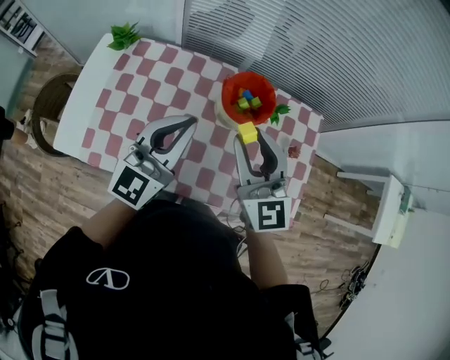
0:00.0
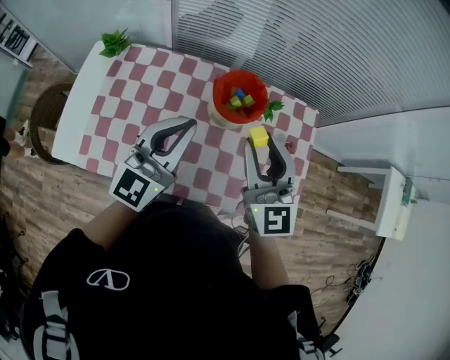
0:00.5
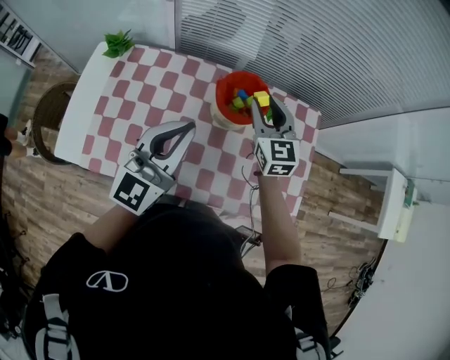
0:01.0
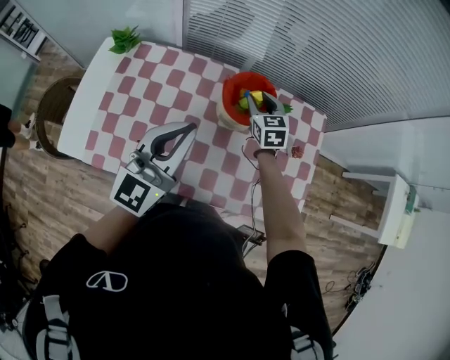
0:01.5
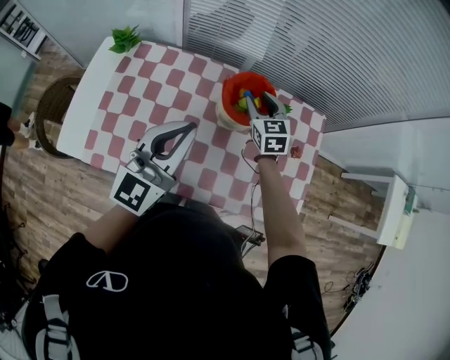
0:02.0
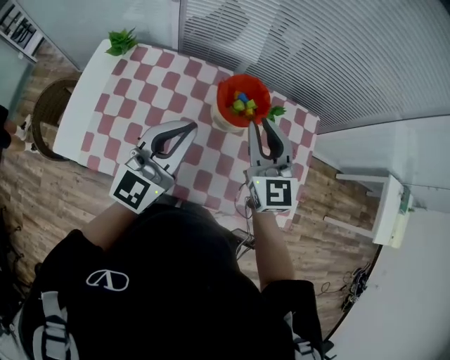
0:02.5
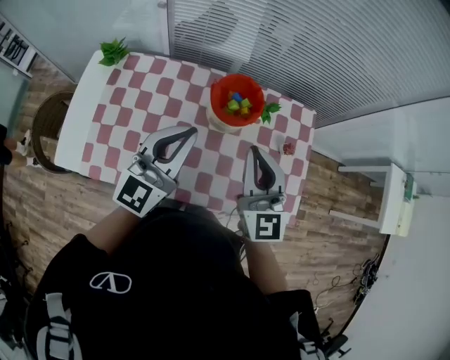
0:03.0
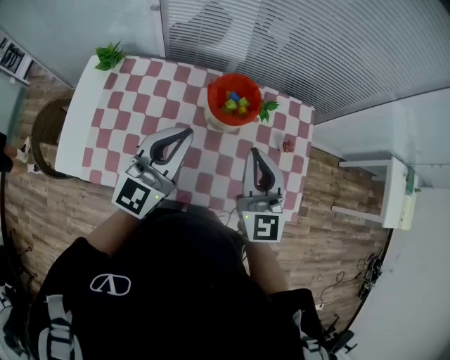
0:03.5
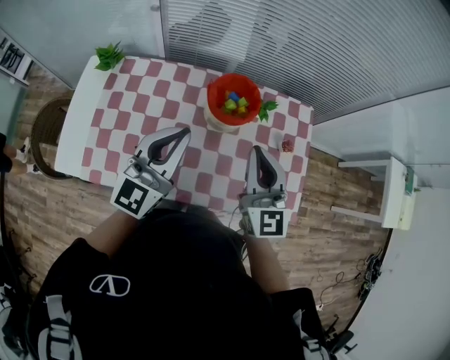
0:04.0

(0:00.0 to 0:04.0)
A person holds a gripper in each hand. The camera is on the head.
0:00.0 - 0:02.0: The right gripper is displaced downward and forward by roughly 25 cm, and swivels approximately 30 degrees.
0:02.0 - 0:04.0: The right gripper shifts roughly 25 cm backward and upward, changes its angle by some 30 degrees, and closes.

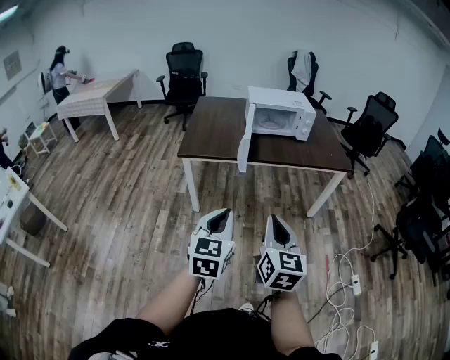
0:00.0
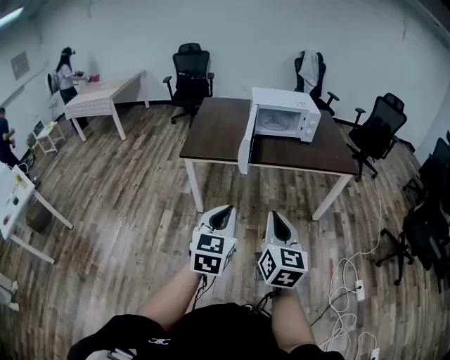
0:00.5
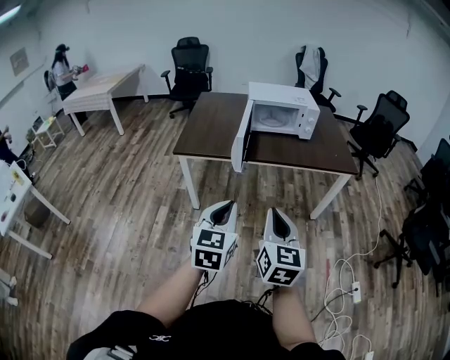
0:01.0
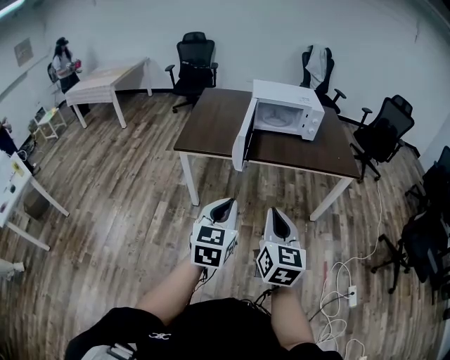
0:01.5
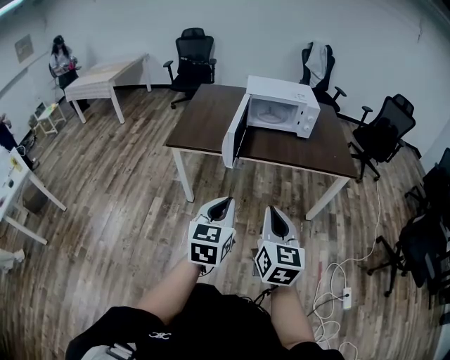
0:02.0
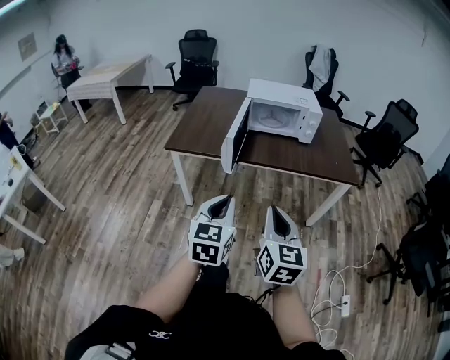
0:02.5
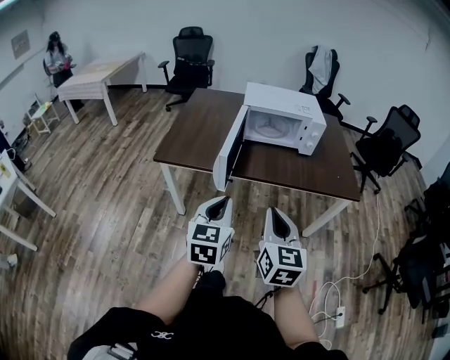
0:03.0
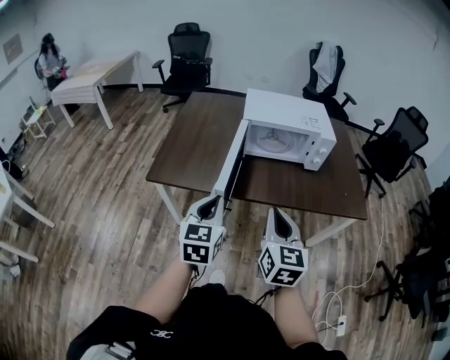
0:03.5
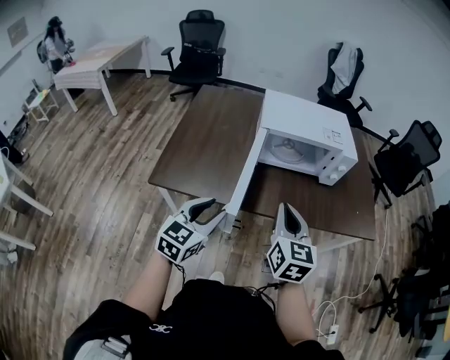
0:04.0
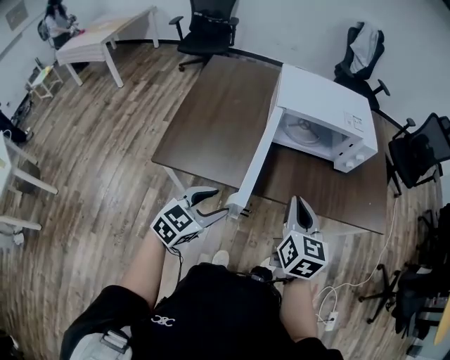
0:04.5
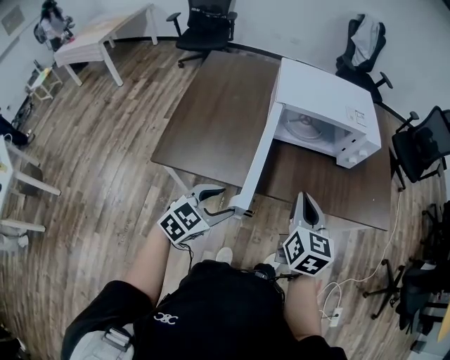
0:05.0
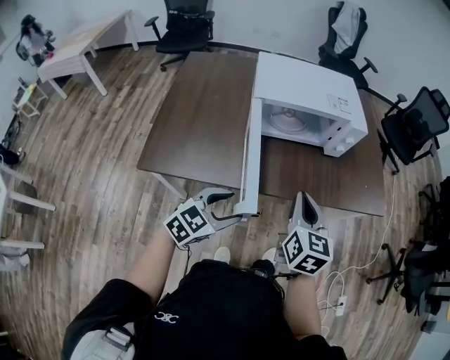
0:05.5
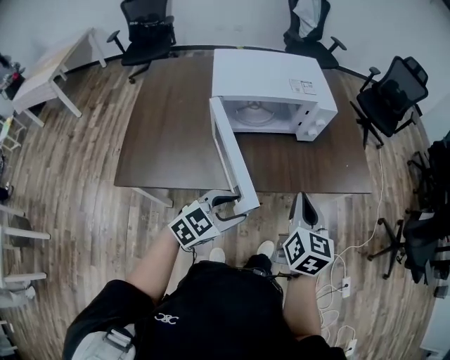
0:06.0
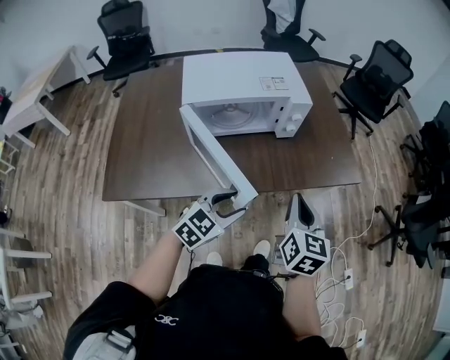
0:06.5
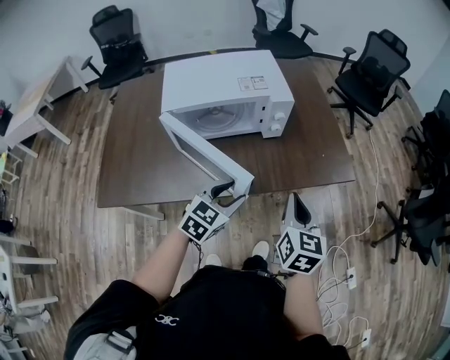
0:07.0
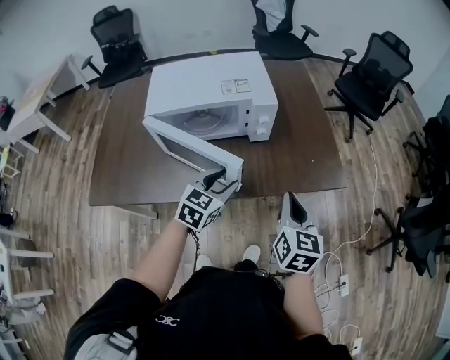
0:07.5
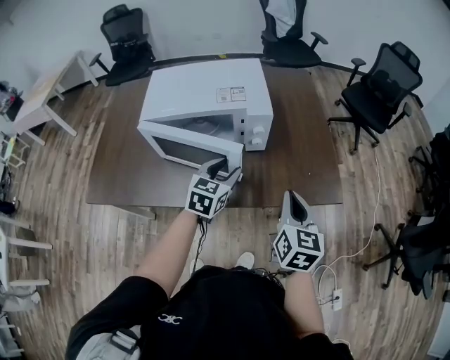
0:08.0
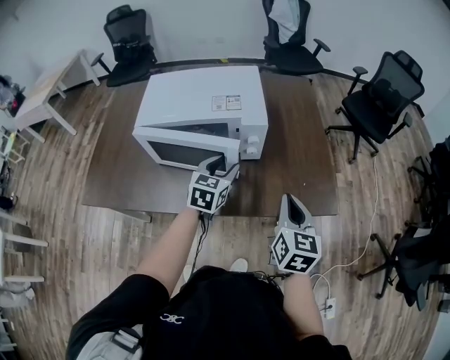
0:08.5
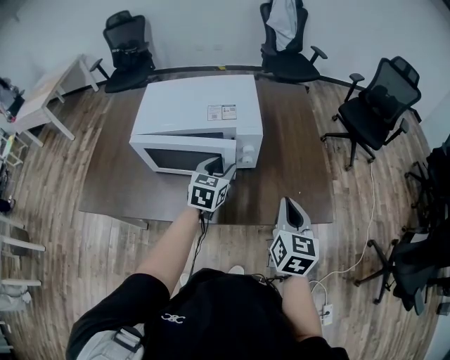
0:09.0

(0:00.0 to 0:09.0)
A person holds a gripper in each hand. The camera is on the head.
0:00.0 - 0:02.0: Both grippers move to the right and forward, roughly 15 cm.
0:02.0 - 0:04.5: Both grippers travel together forward, about 40 cm. The left gripper rotates roughly 30 degrees, and opens.
0:04.5 - 0:07.0: Both grippers move to the right and forward, roughly 30 cm. The right gripper rotates some 20 degrees.
0:07.0 - 0:09.0: The right gripper moves forward and to the right, roughly 15 cm. The left gripper travels forward by some 25 cm, and swivels some 30 degrees.

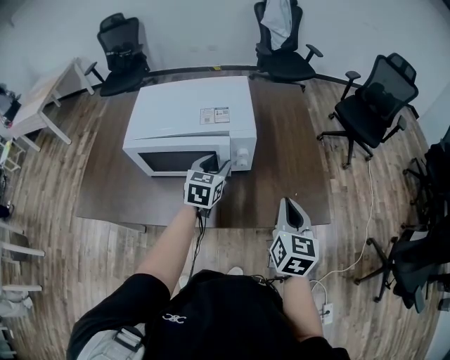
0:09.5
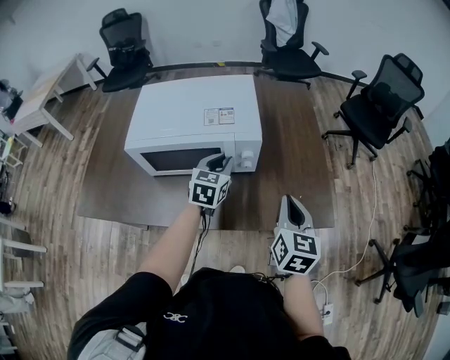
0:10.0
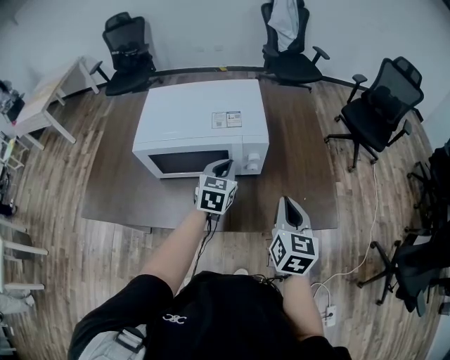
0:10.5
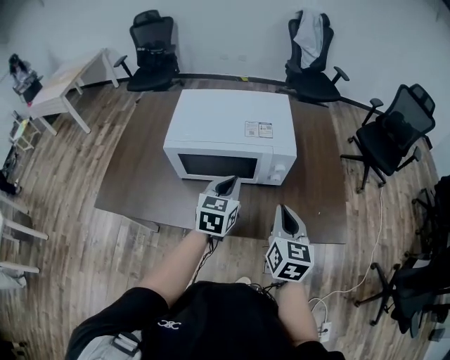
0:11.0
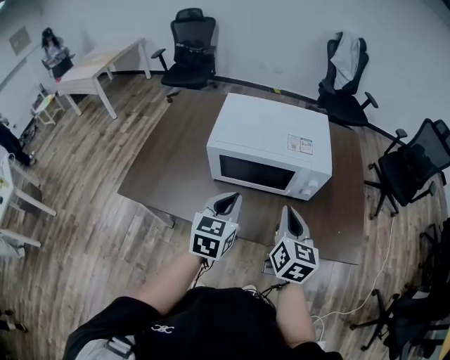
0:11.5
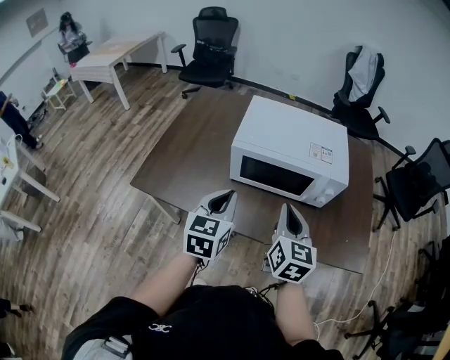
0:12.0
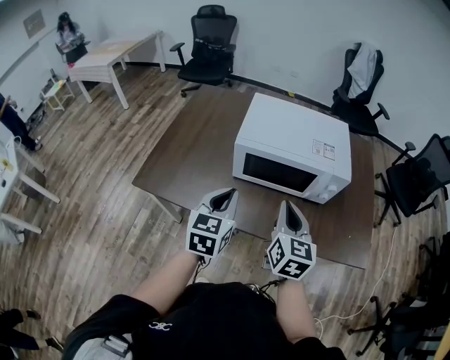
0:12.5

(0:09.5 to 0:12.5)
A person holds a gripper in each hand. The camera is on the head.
0:09.5 - 0:11.0: The left gripper travels to the left and backward by approximately 10 cm, and closes; the right gripper goes approximately 10 cm to the left.
0:11.0 - 0:12.5: The left gripper heads to the left and backward, covering roughly 20 cm, while the right gripper is displaced to the left by about 20 cm.

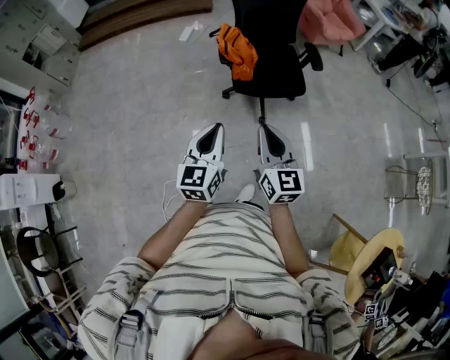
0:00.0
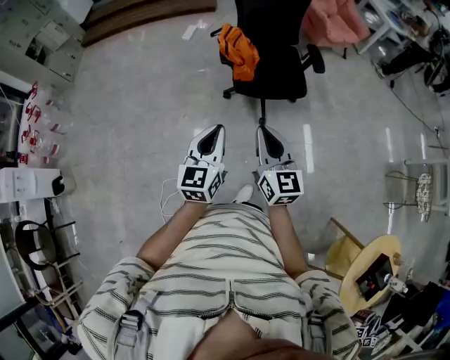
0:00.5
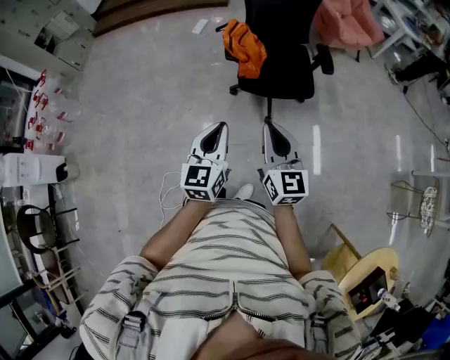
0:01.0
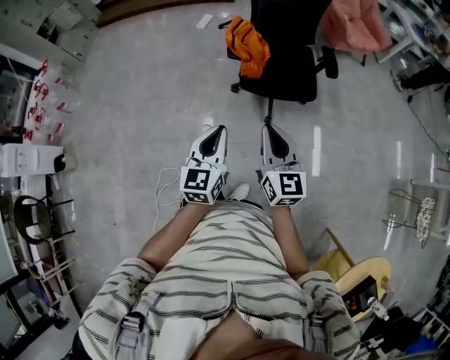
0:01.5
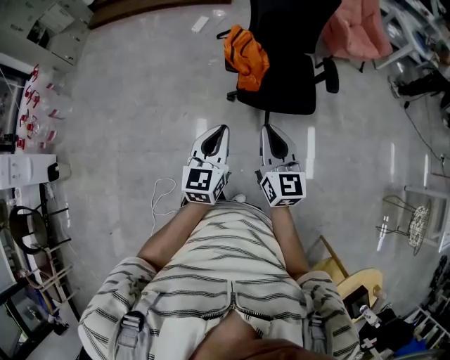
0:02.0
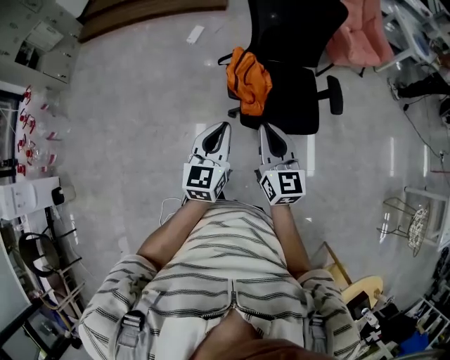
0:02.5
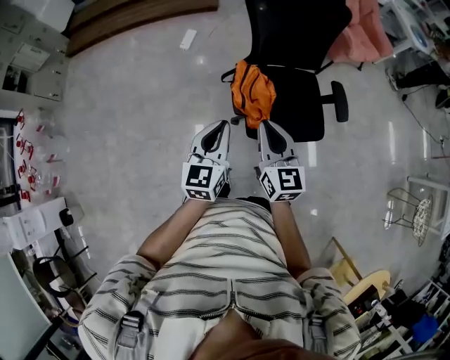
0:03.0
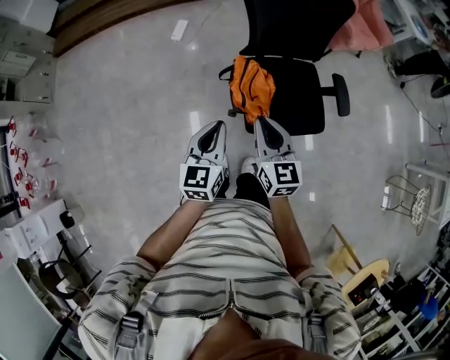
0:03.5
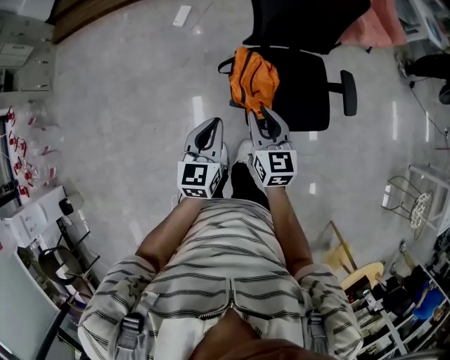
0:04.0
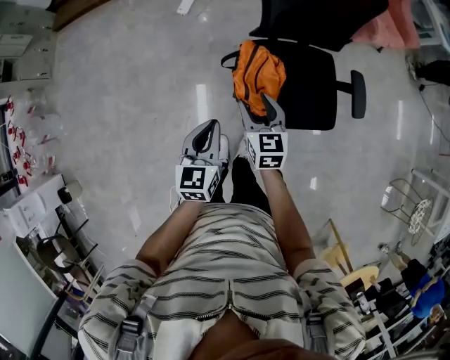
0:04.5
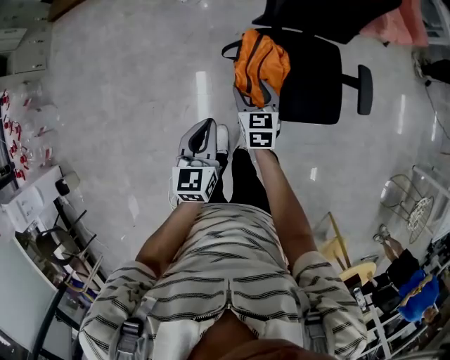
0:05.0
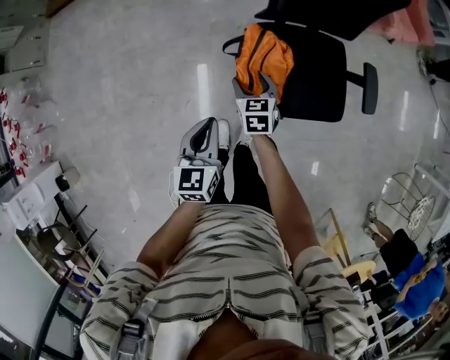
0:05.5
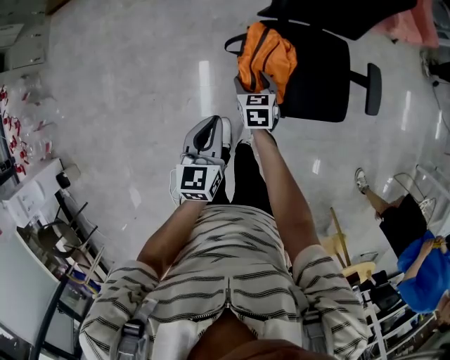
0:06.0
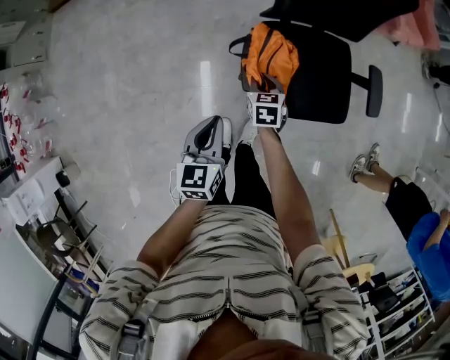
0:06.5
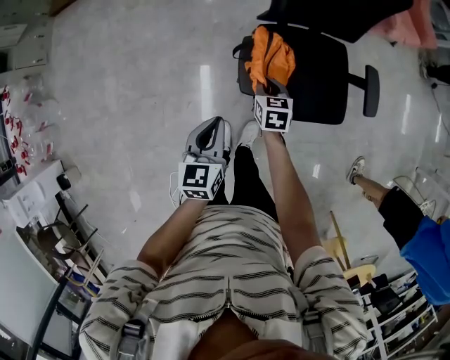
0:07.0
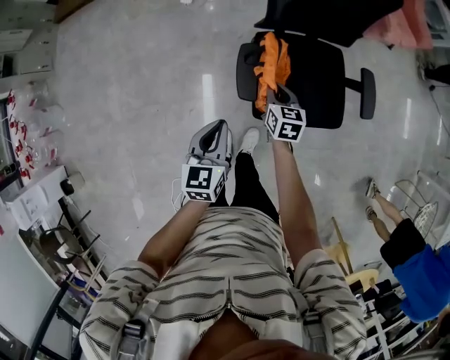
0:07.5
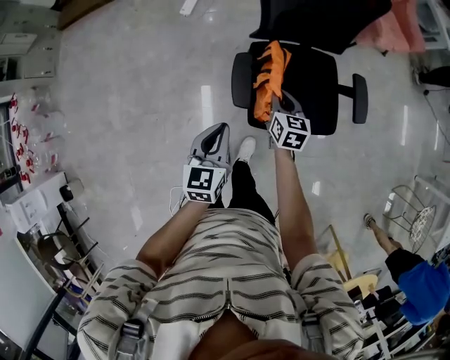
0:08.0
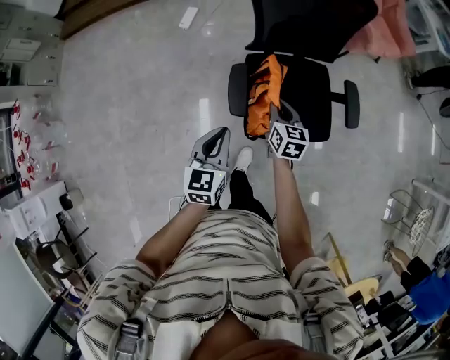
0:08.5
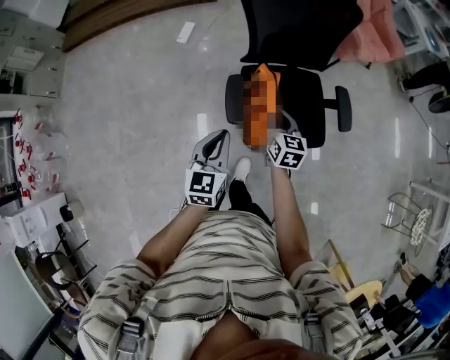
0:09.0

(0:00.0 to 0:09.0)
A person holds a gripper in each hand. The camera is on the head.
0:00.0 - 0:02.0: The right gripper goes some 15 cm forward, while the left gripper is displaced forward and to the right by some 15 cm.
0:02.0 - 0:04.5: The grippers both shift forward by approximately 35 cm. The right gripper changes its angle by approximately 20 degrees, and opens its fingers.
0:04.5 - 0:07.0: The right gripper travels downward by roughly 15 cm, and closes.
0:07.0 - 0:09.0: The right gripper shifts approximately 20 cm upward and to the right, and turns by some 20 degrees. The left gripper travels upward and to the right by approximately 10 cm.

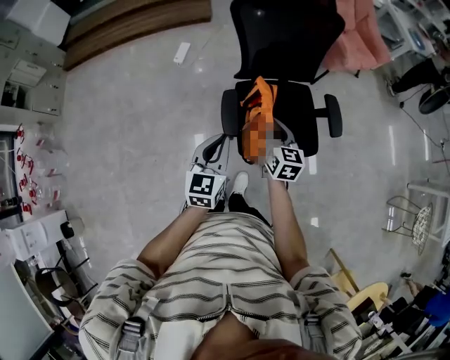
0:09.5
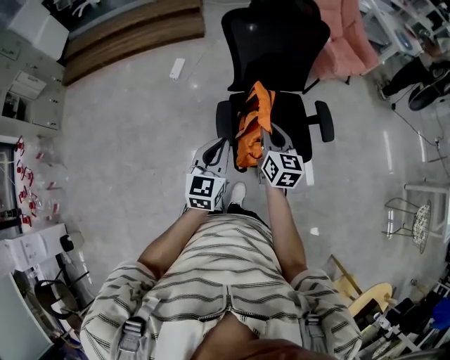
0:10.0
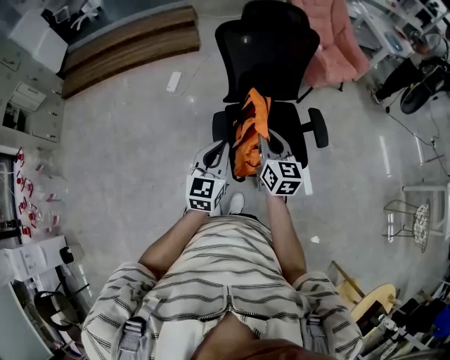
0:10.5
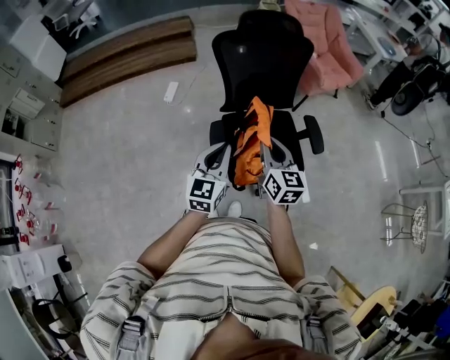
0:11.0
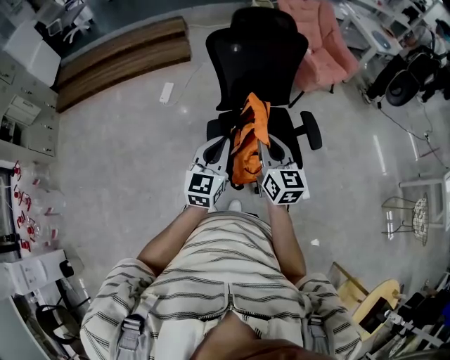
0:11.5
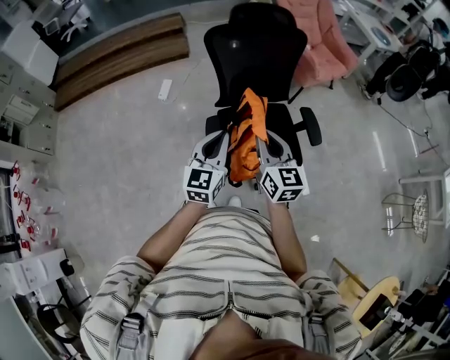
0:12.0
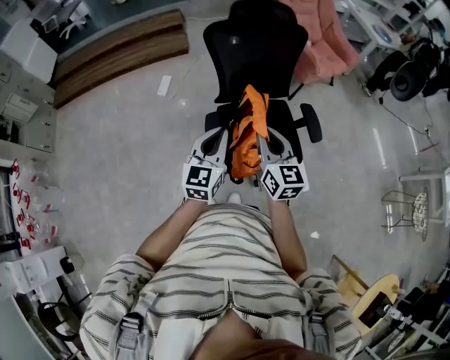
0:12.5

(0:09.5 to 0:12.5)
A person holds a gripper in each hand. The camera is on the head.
0:09.5 - 0:11.0: The right gripper travels upward by approximately 10 cm. Meanwhile the left gripper goes approximately 5 cm upward.
0:11.0 - 0:12.5: The grippers make only small movements.
